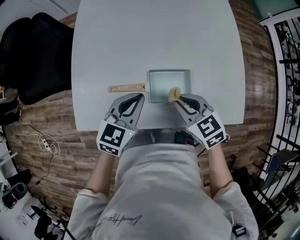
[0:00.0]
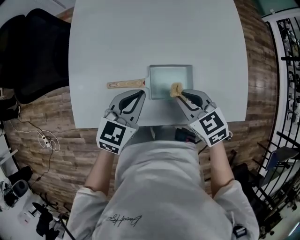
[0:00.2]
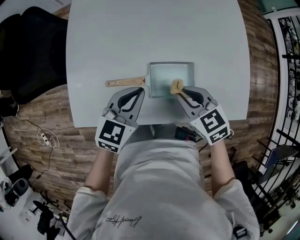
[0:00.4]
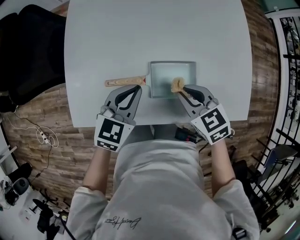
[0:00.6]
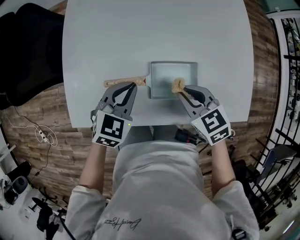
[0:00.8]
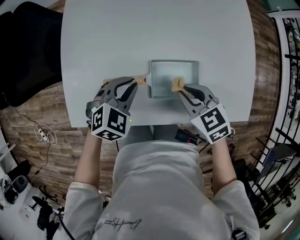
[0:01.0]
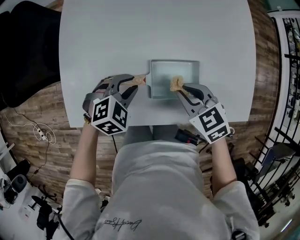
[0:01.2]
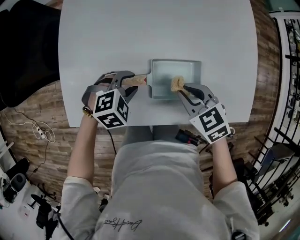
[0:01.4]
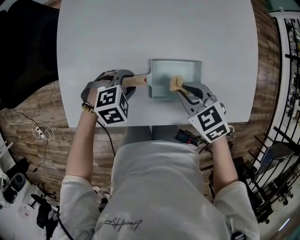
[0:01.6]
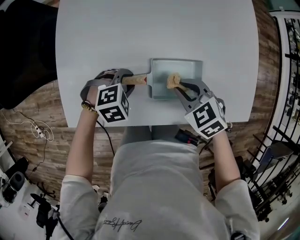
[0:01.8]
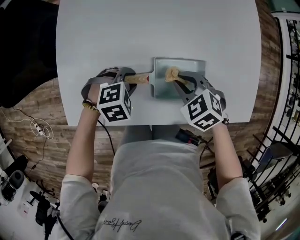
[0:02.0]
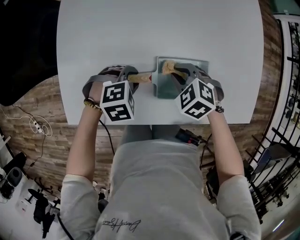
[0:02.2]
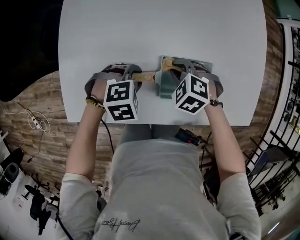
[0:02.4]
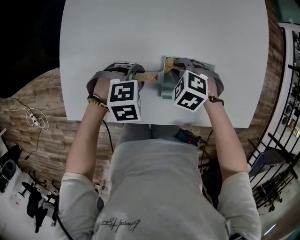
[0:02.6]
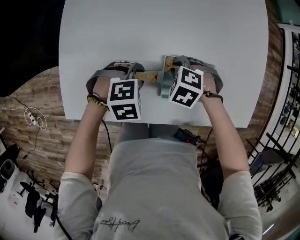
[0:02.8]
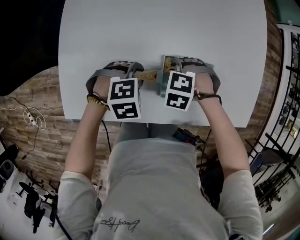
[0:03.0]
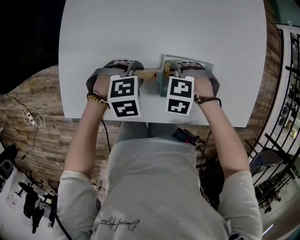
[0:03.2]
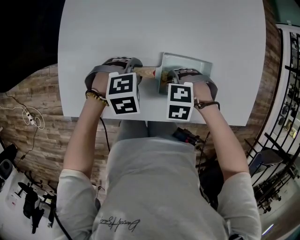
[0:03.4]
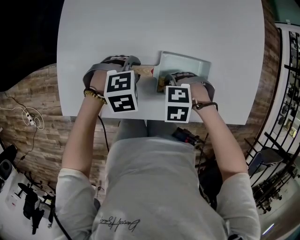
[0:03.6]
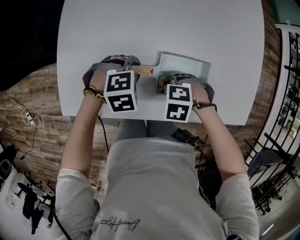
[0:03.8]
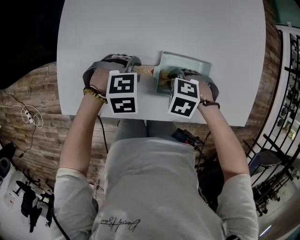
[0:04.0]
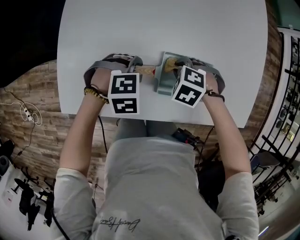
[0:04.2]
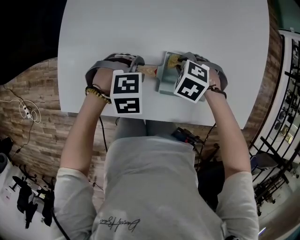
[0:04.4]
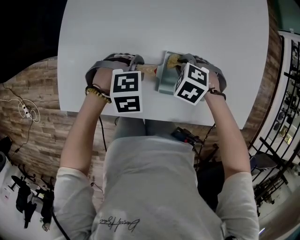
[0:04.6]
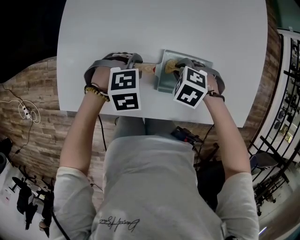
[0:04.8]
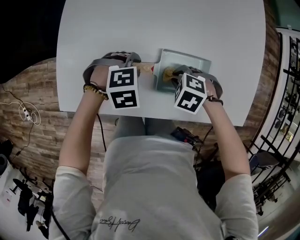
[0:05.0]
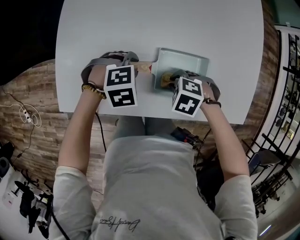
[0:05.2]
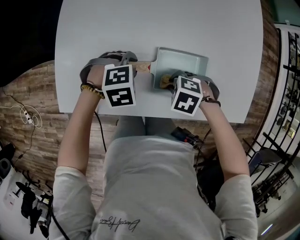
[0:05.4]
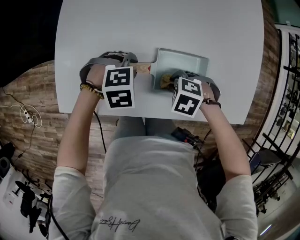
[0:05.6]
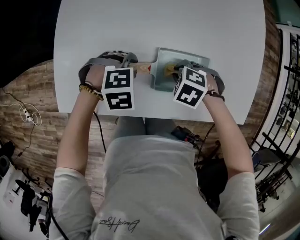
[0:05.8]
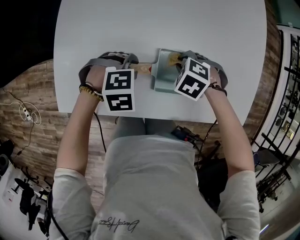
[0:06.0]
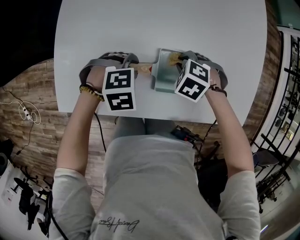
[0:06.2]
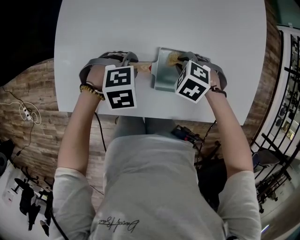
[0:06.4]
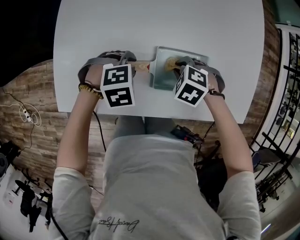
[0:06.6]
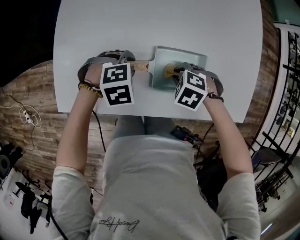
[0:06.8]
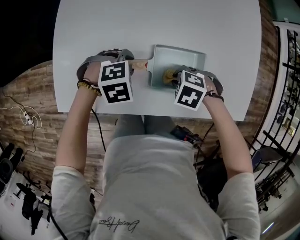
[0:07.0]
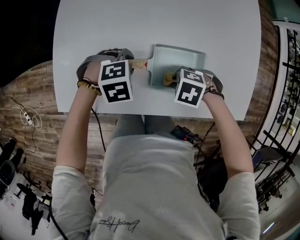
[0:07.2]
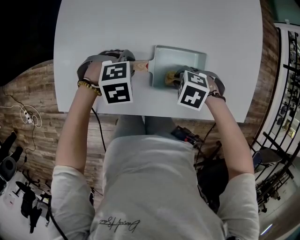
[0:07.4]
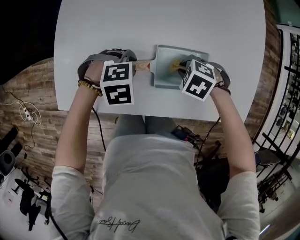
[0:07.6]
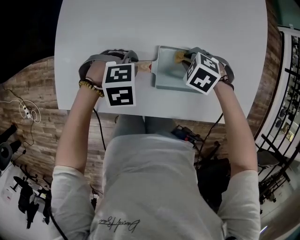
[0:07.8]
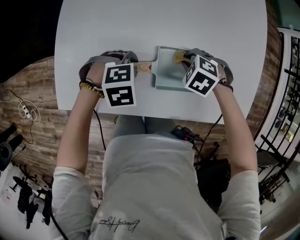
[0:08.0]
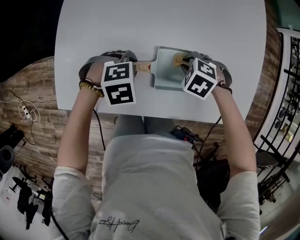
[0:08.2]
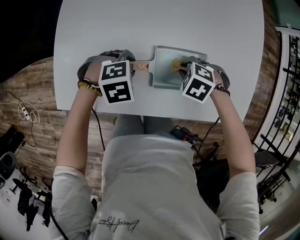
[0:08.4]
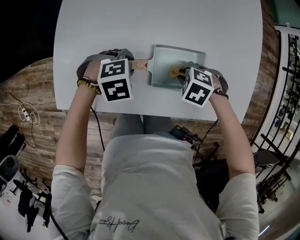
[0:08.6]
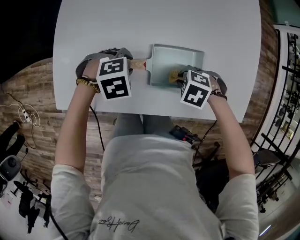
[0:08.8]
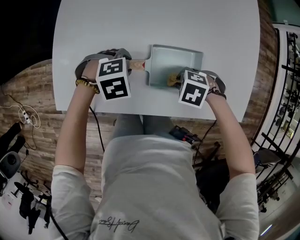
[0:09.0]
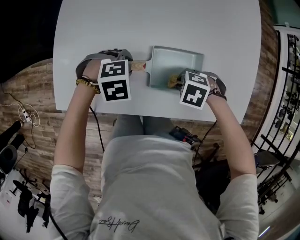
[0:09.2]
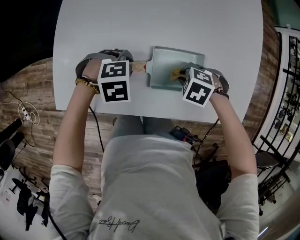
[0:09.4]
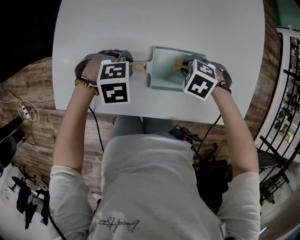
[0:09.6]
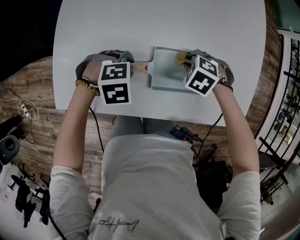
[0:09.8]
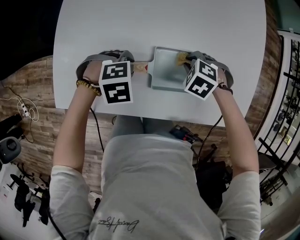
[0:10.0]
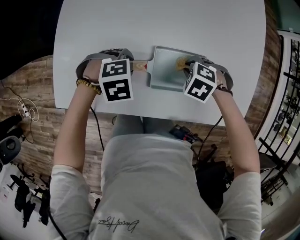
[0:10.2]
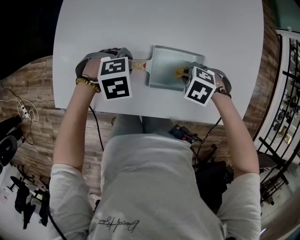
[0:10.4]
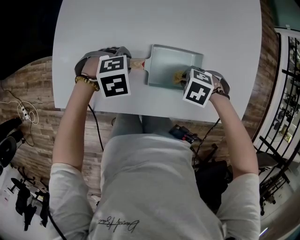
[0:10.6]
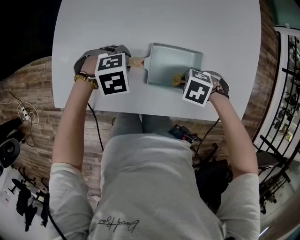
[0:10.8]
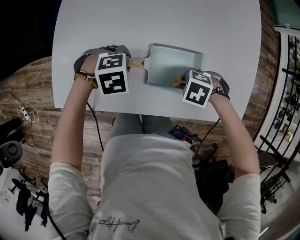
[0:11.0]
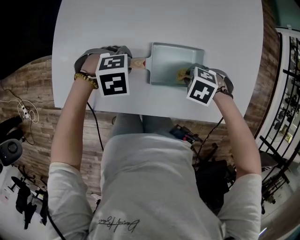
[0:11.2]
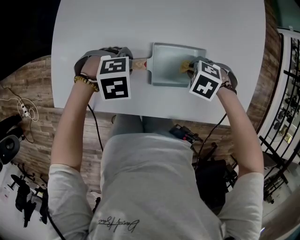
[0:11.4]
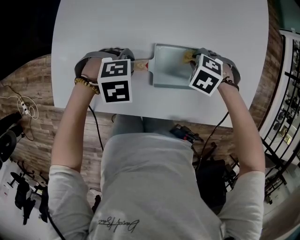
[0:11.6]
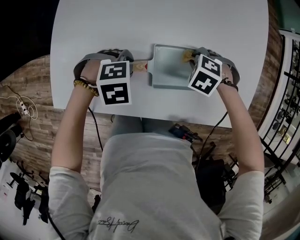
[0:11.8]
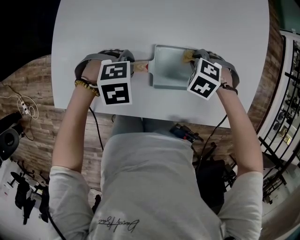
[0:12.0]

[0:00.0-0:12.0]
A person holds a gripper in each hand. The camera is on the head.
0:00.0 to 0:01.6: The right gripper is displaced downward by some 5 cm. Meanwhile the left gripper heads downward, covering some 15 cm, angles its fingers downward, by approximately 40 degrees, and opens up.
0:01.6 to 0:03.0: The right gripper shifts roughly 10 cm downward, and angles its fingers downward, by roughly 30 degrees.
0:07.6 to 0:09.0: The right gripper shifts by some 5 cm.
0:10.4 to 0:12.0: The right gripper moves roughly 5 cm.

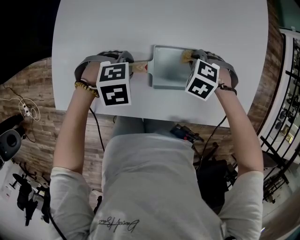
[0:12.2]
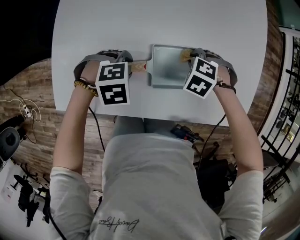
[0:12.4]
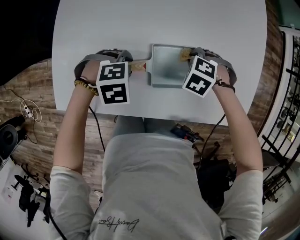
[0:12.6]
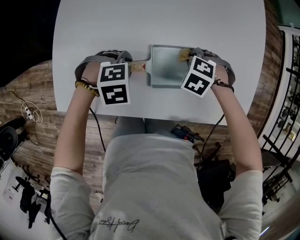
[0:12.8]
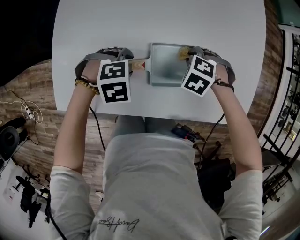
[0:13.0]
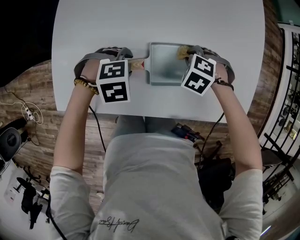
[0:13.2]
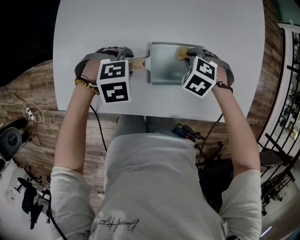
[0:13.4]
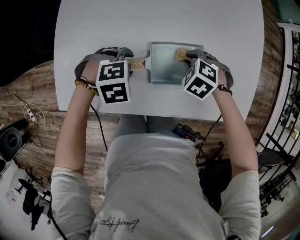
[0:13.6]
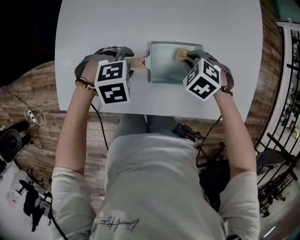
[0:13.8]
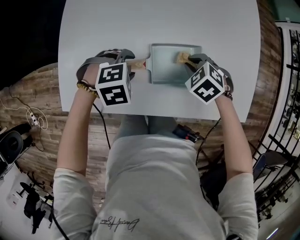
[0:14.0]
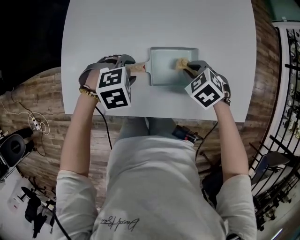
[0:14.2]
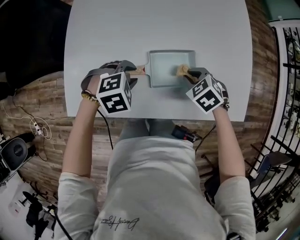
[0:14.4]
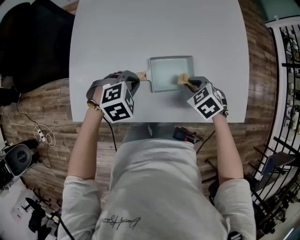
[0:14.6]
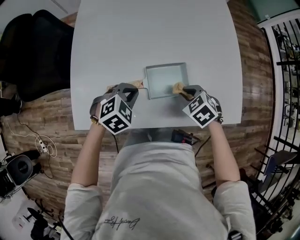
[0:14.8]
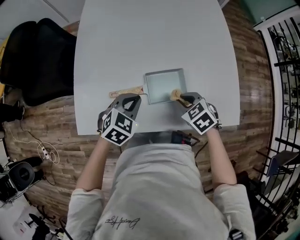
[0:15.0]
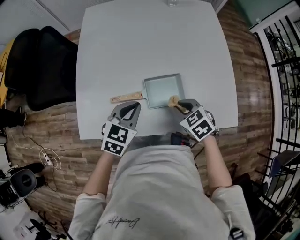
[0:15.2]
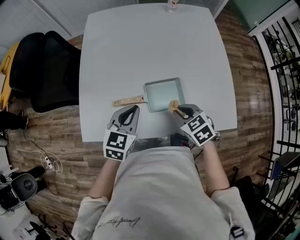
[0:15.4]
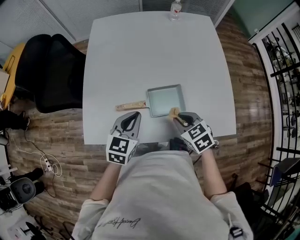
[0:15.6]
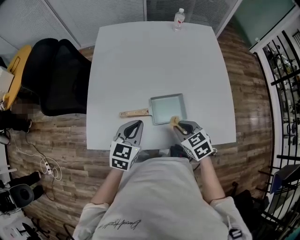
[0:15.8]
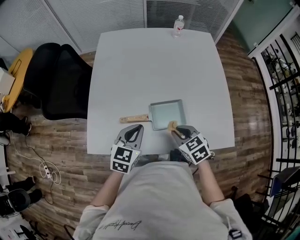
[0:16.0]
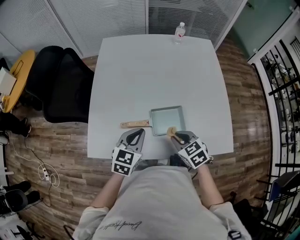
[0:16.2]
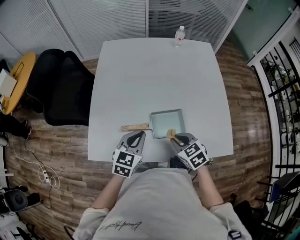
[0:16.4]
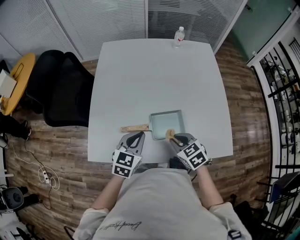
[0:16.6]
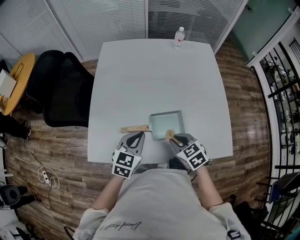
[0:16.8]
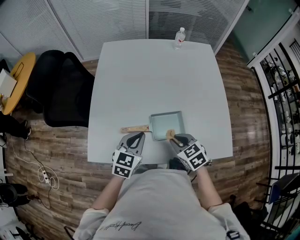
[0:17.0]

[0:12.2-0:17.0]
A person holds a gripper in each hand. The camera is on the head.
0:12.2 to 0:13.8: There are only small adjustments of the grippers.
0:13.8 to 0:15.4: The grippers both shift upward by about 15 cm. The left gripper angles its fingers upward, by approximately 50 degrees, and closes; the right gripper turns by approximately 40 degrees.
0:15.4 to 0:17.0: The grippers stay close to where they were, moving slightly.

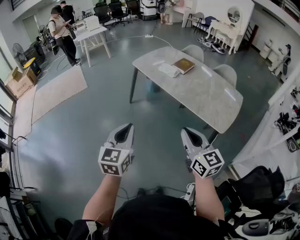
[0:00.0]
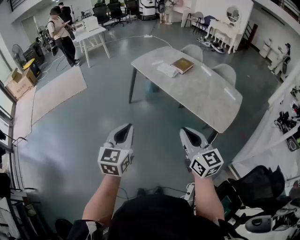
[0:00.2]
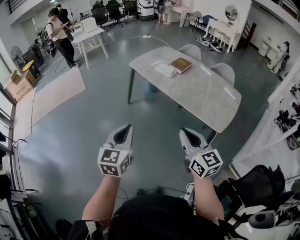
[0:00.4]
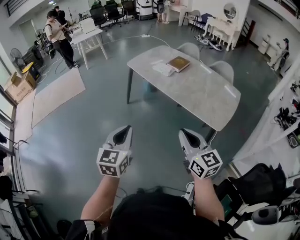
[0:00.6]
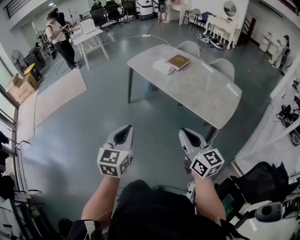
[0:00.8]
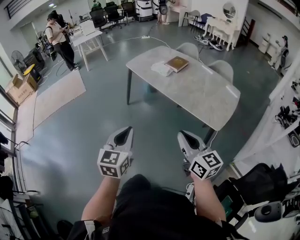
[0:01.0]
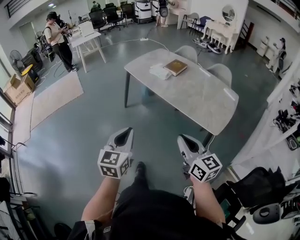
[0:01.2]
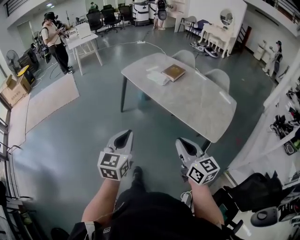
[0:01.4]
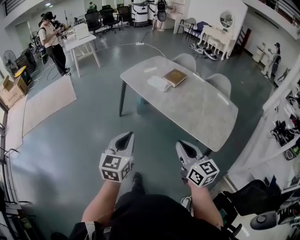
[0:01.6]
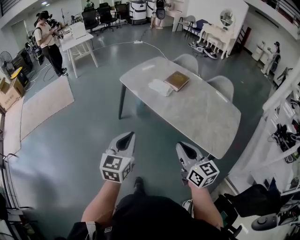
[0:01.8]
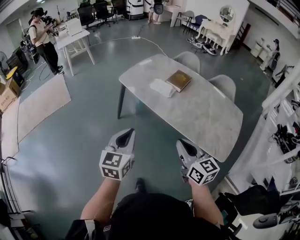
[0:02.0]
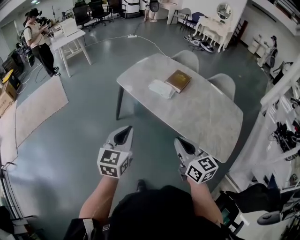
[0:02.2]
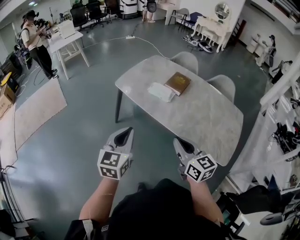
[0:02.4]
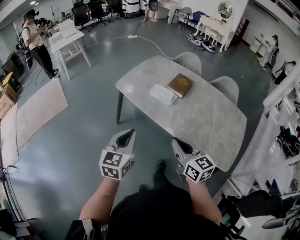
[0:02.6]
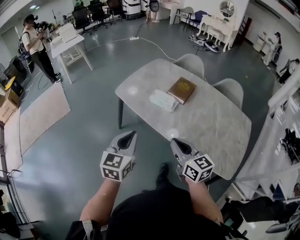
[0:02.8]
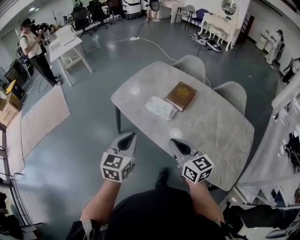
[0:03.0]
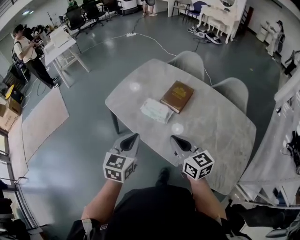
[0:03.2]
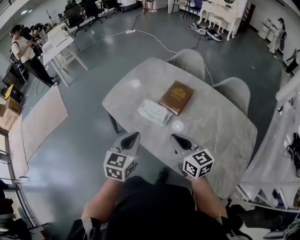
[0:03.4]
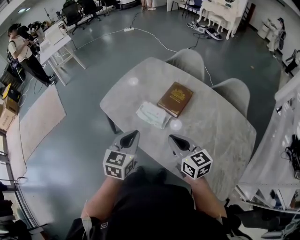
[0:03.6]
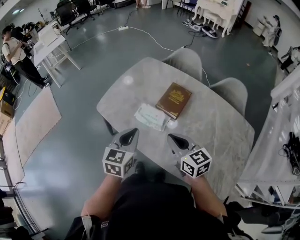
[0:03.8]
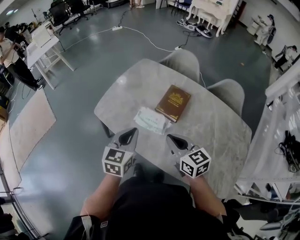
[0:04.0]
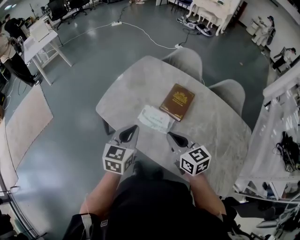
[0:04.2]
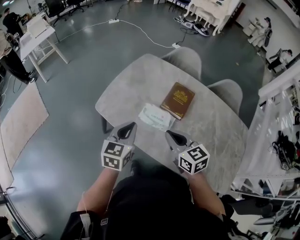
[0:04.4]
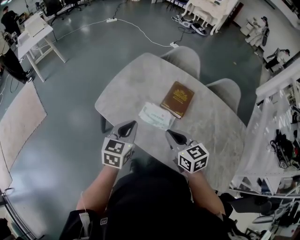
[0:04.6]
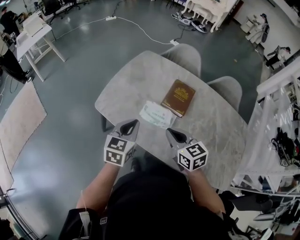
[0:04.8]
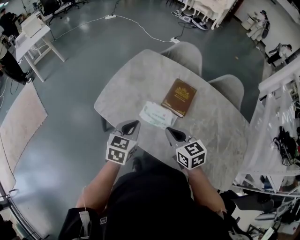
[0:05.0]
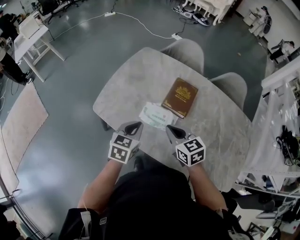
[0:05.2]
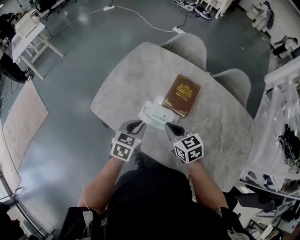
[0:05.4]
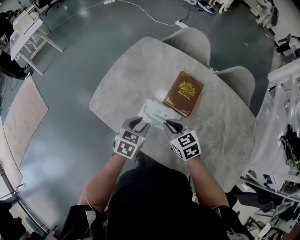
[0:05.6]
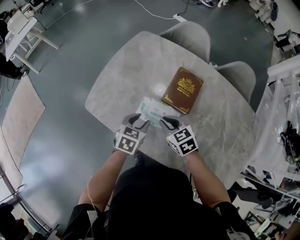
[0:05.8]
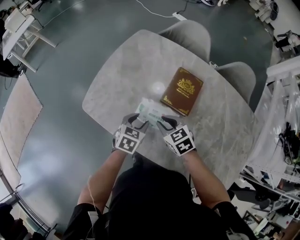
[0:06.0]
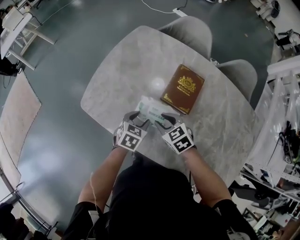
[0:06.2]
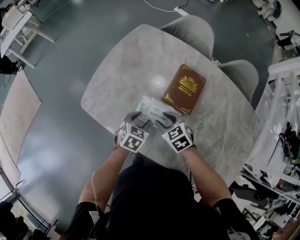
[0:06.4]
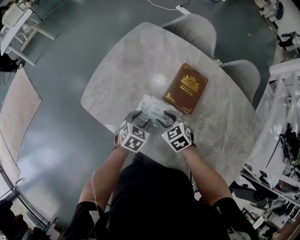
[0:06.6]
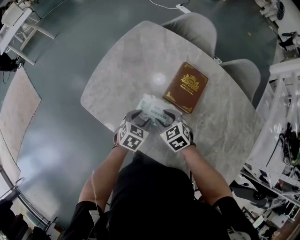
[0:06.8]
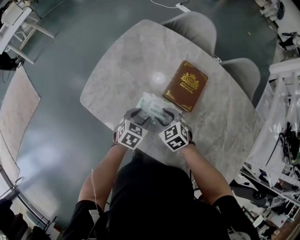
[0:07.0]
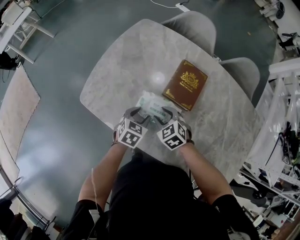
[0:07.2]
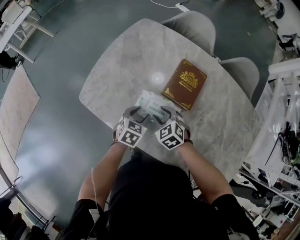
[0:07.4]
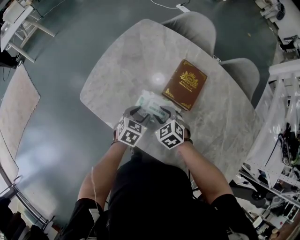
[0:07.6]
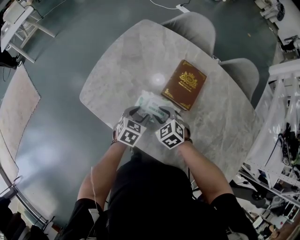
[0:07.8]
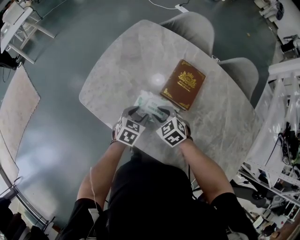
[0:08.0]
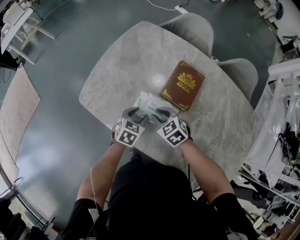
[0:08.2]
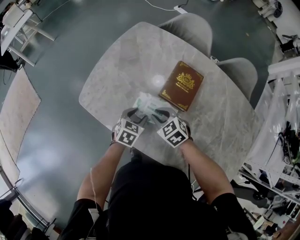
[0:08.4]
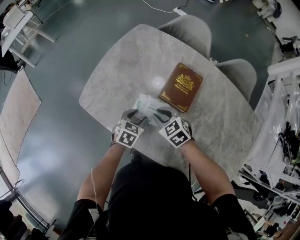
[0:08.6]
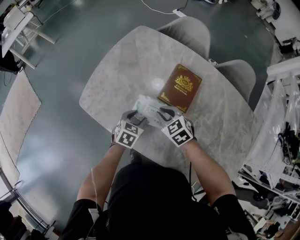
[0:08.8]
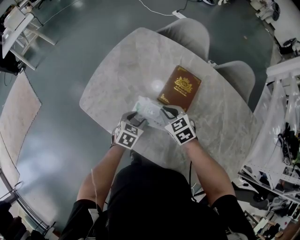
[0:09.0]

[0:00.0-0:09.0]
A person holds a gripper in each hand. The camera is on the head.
0:00.0 to 0:01.6: Both grippers travel together forward and to the right, roughly 15 cm.
0:01.6 to 0:03.0: The two grippers go some 40 cm forward.
0:03.0 to 0:04.4: The two grippers go roughly 20 cm forward.
0:04.4 to 0:06.0: Both grippers travel together downward and forward, roughly 25 cm. The left gripper changes its angle by some 30 degrees, and opens up. The right gripper changes its angle by roughly 20 degrees, and opens up.
0:06.0 to 0:07.6: The grippers make only small movements.
0:07.6 to 0:09.0: The right gripper changes place by roughly 5 cm, and closes up.
